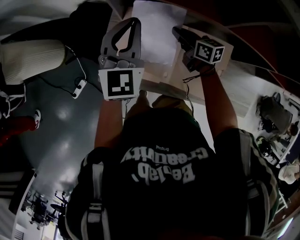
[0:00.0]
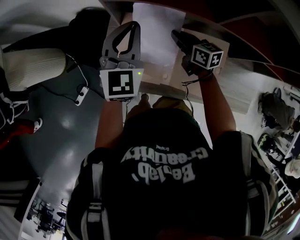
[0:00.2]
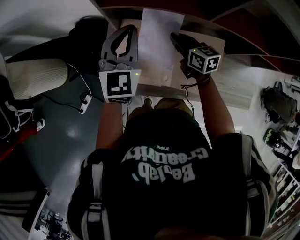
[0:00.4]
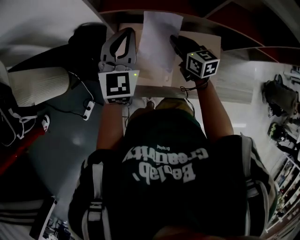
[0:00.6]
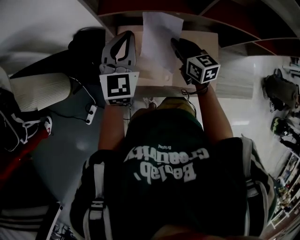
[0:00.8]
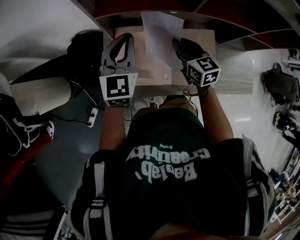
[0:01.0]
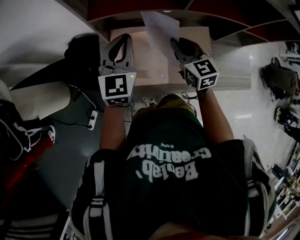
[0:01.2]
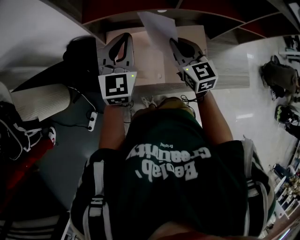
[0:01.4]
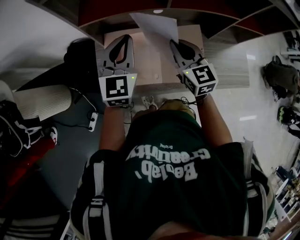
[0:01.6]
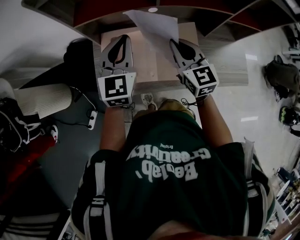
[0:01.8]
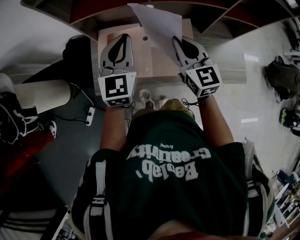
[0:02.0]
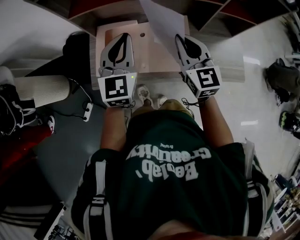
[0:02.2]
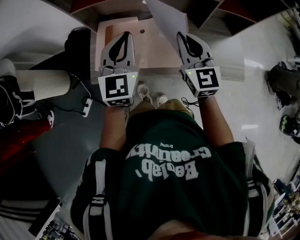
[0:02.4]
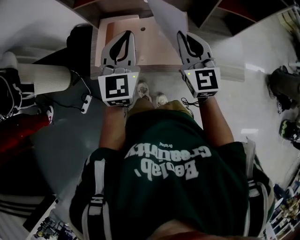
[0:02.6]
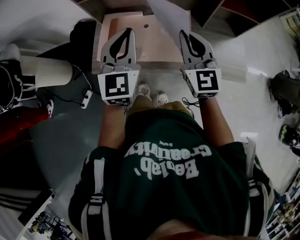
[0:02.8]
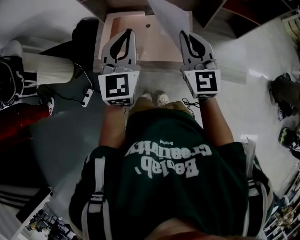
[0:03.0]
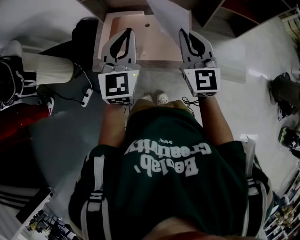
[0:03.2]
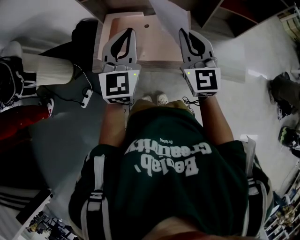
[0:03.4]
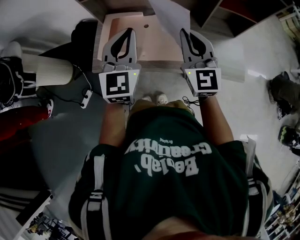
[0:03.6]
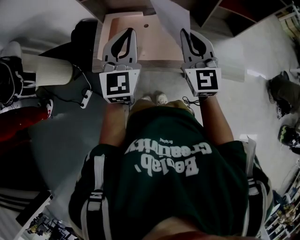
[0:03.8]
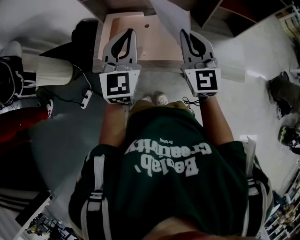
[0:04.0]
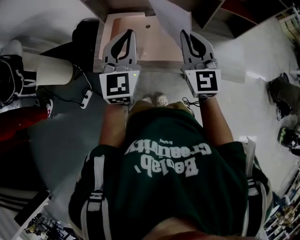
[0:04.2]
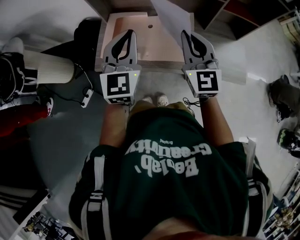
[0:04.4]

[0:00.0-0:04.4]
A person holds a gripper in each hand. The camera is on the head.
0:00.0 to 0:01.4: The right gripper travels upward by about 15 cm, and changes its angle by about 50 degrees. Meanwhile the left gripper shifts by roughly 10 cm.
0:01.4 to 0:03.0: The left gripper shifts approximately 25 cm backward and to the right. The right gripper goes some 25 cm backward, to the right and upward, and changes its angle by roughly 20 degrees.
0:03.0 to 0:04.4: The grippers move only a little.

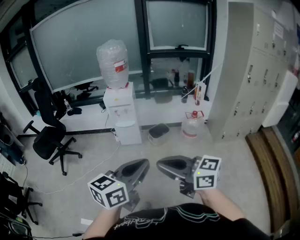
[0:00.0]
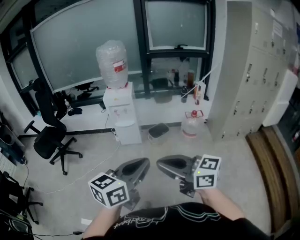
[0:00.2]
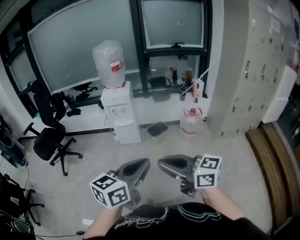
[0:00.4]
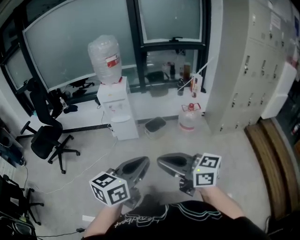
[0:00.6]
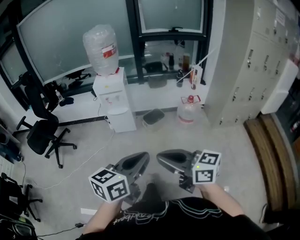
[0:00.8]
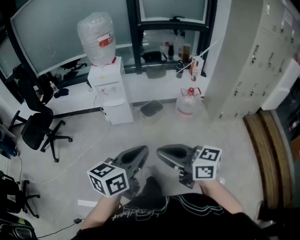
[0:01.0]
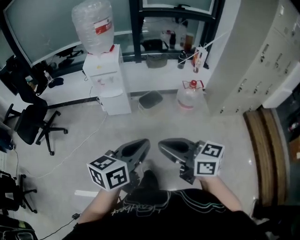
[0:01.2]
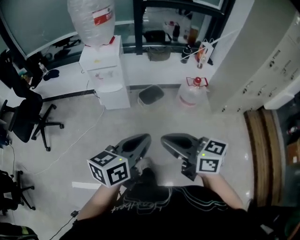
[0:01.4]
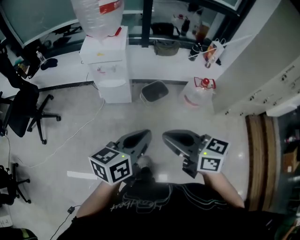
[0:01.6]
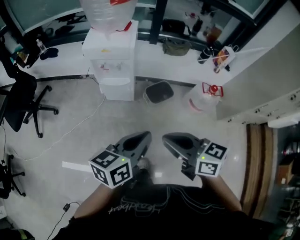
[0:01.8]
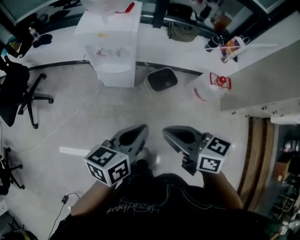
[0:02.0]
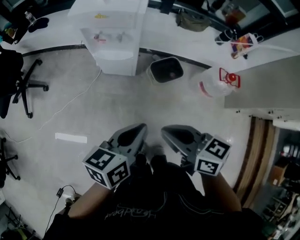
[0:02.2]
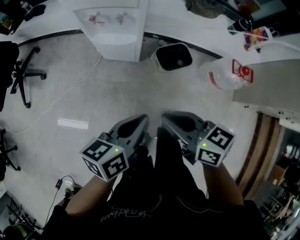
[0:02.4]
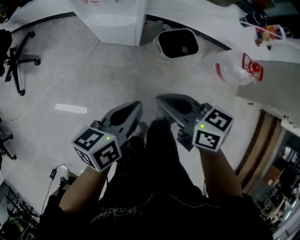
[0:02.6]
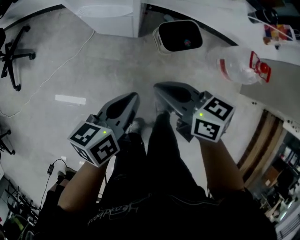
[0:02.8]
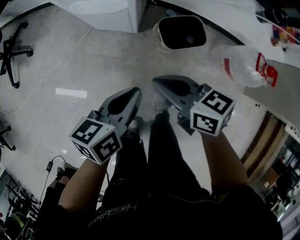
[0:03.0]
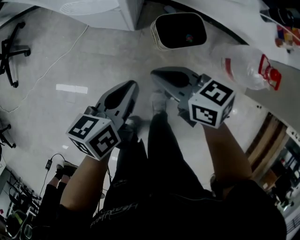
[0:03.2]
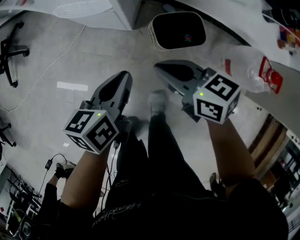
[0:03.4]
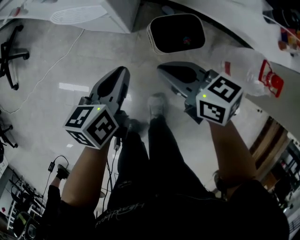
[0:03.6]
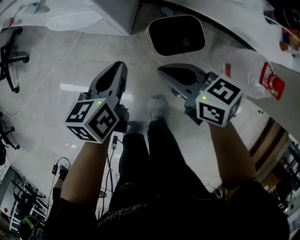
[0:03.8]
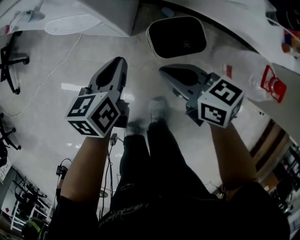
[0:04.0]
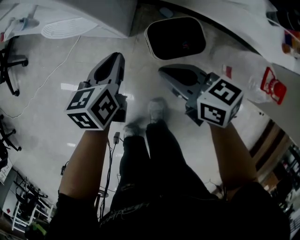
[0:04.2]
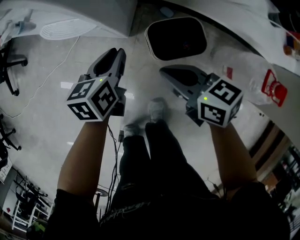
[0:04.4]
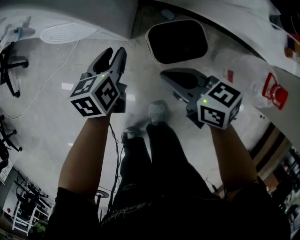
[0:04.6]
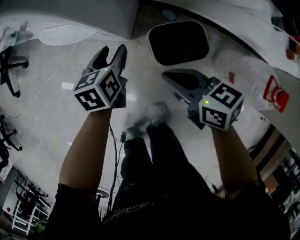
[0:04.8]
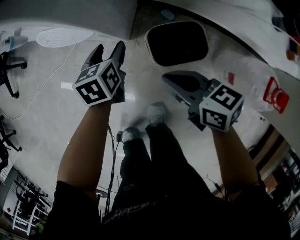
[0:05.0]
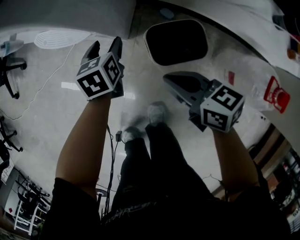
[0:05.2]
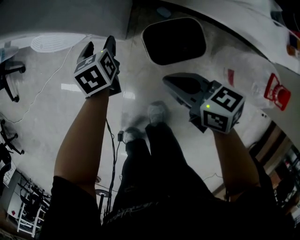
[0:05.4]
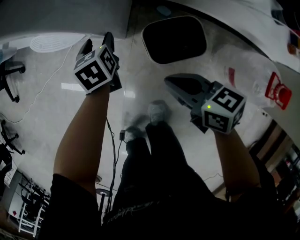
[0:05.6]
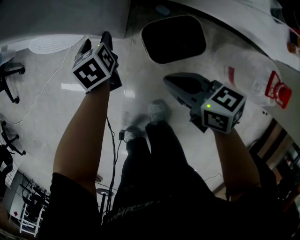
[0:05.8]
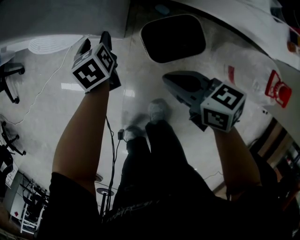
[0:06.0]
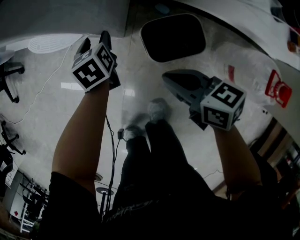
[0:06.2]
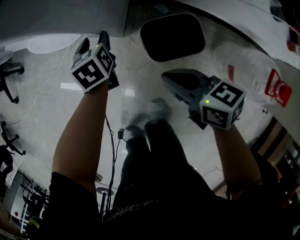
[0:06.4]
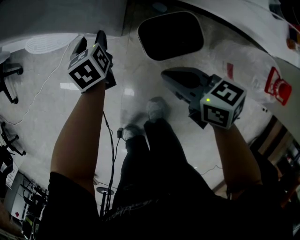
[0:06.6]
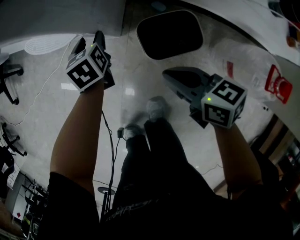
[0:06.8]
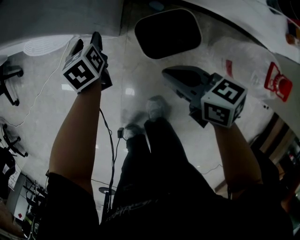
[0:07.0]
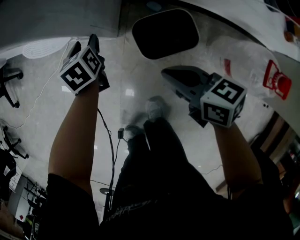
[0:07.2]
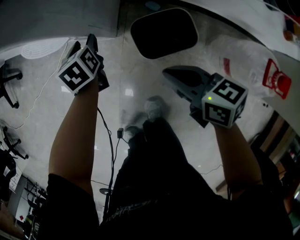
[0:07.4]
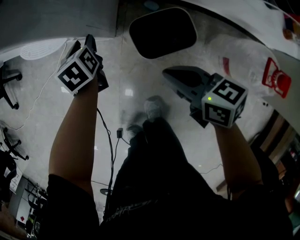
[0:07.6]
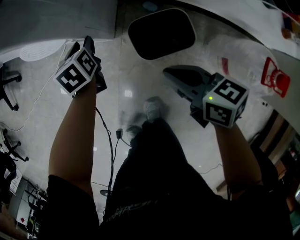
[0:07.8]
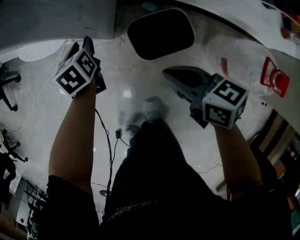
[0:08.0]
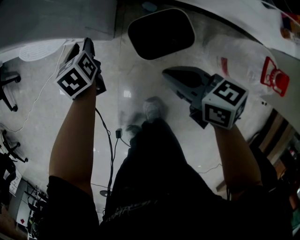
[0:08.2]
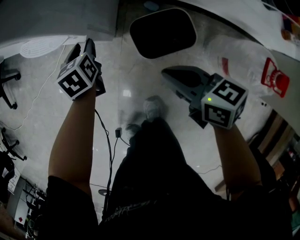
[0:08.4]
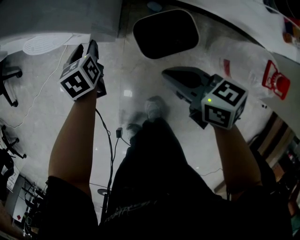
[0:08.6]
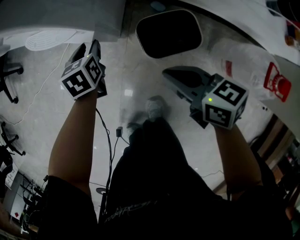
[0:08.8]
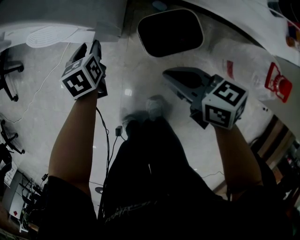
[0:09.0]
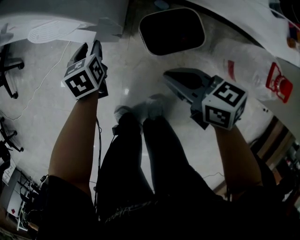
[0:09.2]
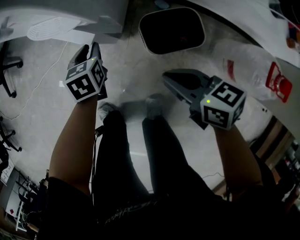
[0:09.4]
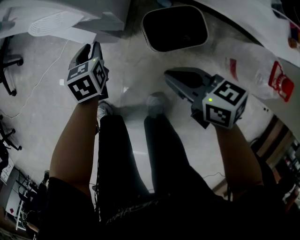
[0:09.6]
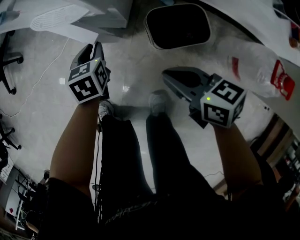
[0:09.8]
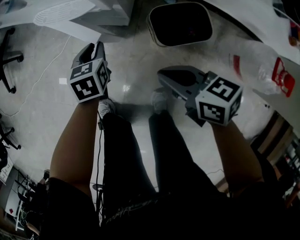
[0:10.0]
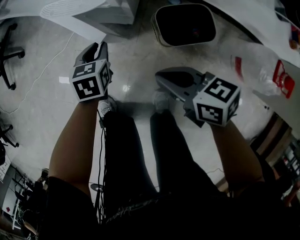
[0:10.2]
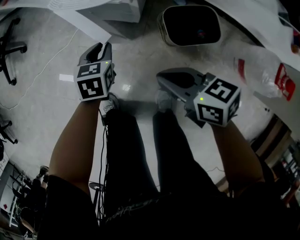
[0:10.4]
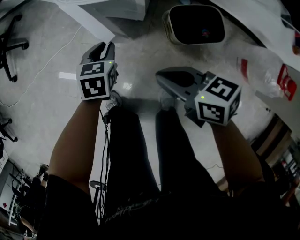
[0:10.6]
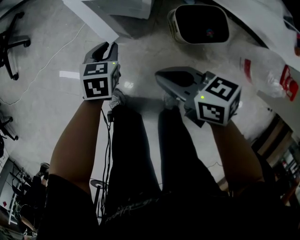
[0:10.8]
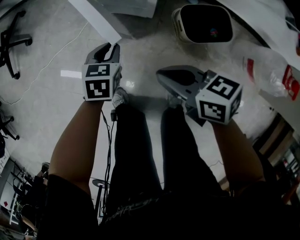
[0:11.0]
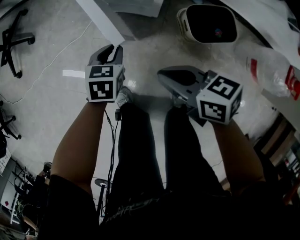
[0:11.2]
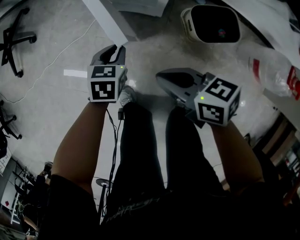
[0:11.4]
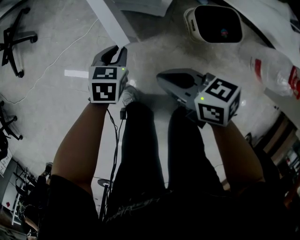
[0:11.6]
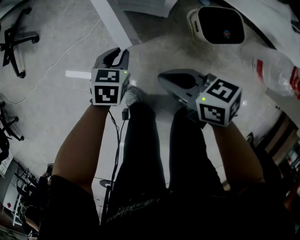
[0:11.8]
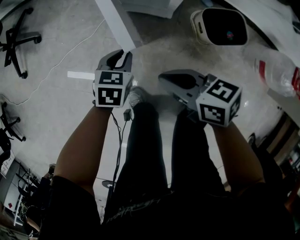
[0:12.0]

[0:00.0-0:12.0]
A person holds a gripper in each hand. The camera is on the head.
0:00.0 to 0:01.6: Both grippers travel together forward and downward, roughly 35 cm.
0:01.6 to 0:03.0: The grippers both shift downward and forward by roughly 50 cm. The left gripper swivels some 30 degrees. The right gripper rotates about 20 degrees.
0:03.0 to 0:04.4: The left gripper heads forward, downward and to the right, covering approximately 25 cm, and changes its angle by approximately 20 degrees, while the right gripper moves to the right, forward and downward, approximately 15 cm.
0:04.4 to 0:06.0: The left gripper travels forward and downward by some 15 cm, rotates roughly 30 degrees, and opens.
0:06.0 to 0:09.0: There are only small adjustments of the grippers.
0:09.0 to 0:10.4: The two grippers go approximately 10 cm to the left.
0:10.4 to 0:12.0: Both grippers travel together to the left, roughly 15 cm.

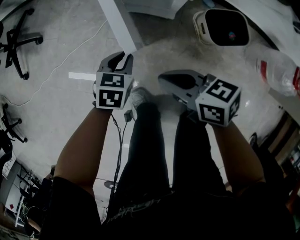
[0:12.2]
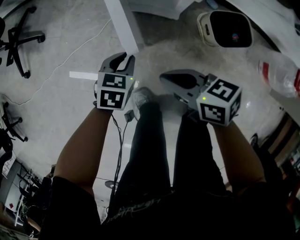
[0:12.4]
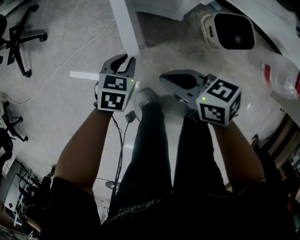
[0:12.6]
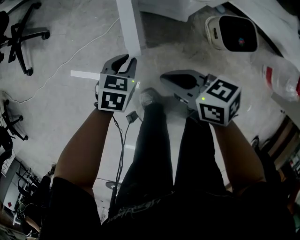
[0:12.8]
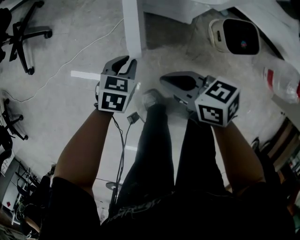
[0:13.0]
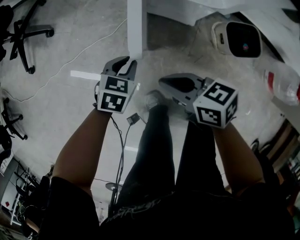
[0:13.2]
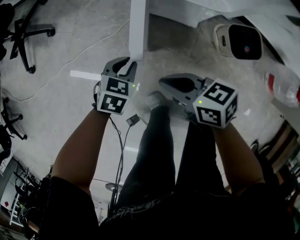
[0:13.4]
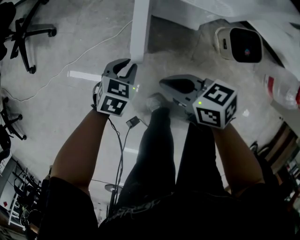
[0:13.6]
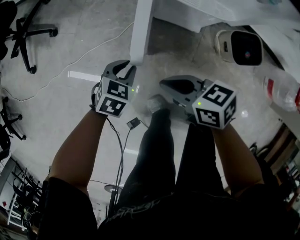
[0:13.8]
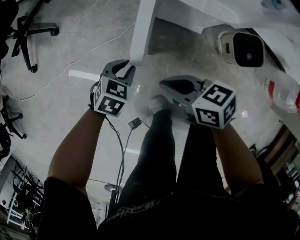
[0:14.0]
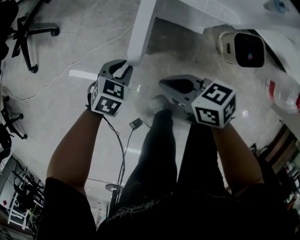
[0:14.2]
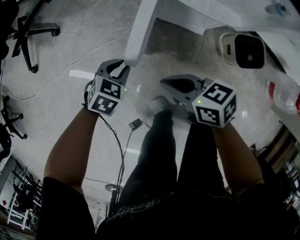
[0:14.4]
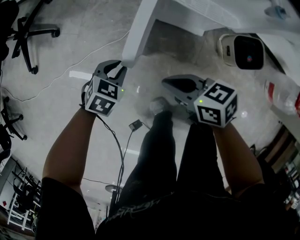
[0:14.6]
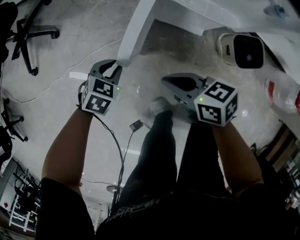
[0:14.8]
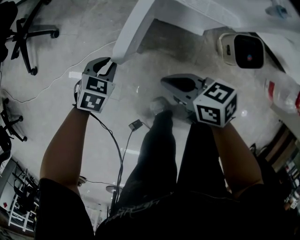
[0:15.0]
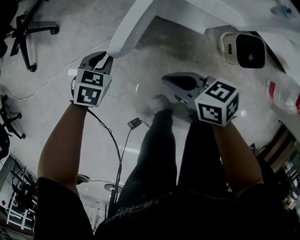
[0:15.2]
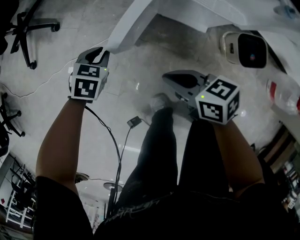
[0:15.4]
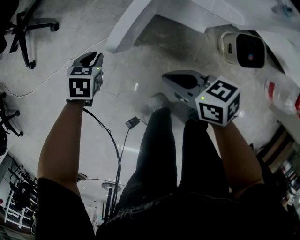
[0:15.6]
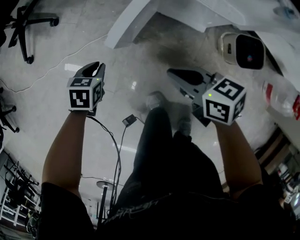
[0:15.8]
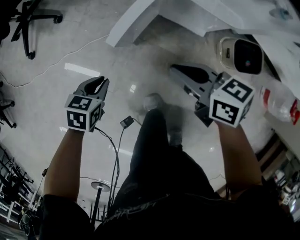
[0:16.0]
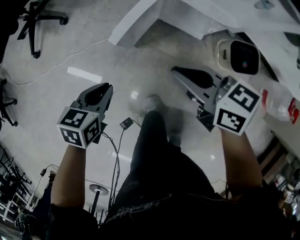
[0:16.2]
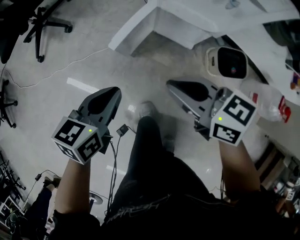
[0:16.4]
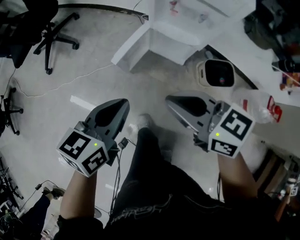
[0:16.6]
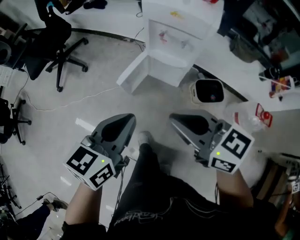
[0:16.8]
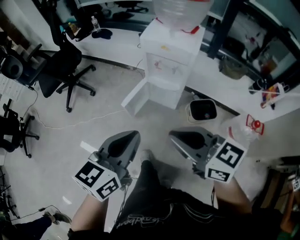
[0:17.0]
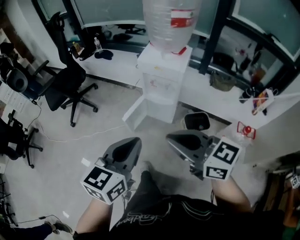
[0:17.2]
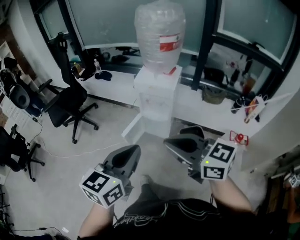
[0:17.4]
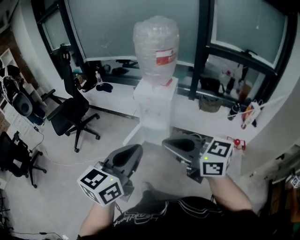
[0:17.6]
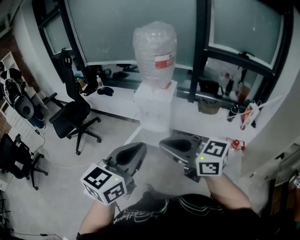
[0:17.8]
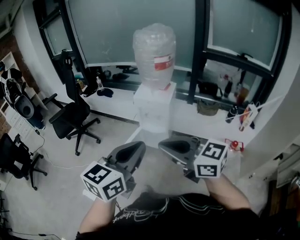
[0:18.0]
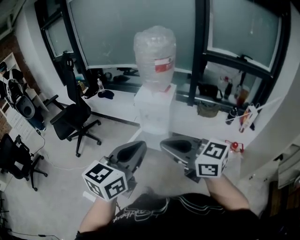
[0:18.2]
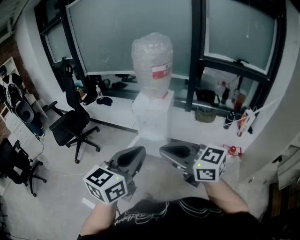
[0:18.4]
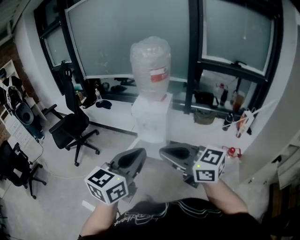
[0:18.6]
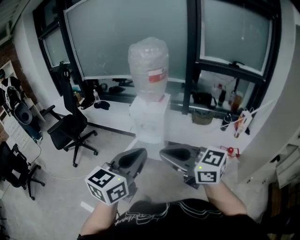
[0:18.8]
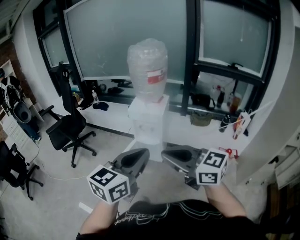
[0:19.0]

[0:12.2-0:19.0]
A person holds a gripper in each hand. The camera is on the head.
0:12.2 to 0:13.6: The left gripper is displaced to the left by roughly 10 cm; the right gripper is displaced to the left and forward by about 10 cm.
0:13.6 to 0:15.0: The left gripper shifts roughly 10 cm to the left and forward.
0:15.0 to 0:16.2: The right gripper shifts some 10 cm upward, while the left gripper is displaced backward and upward by approximately 15 cm, and turns by some 30 degrees.
0:16.2 to 0:17.6: The two grippers go about 70 cm upward and backward. The right gripper turns by approximately 40 degrees. The left gripper tilts its fingers some 50 degrees upward.
0:17.6 to 0:19.0: The left gripper changes place by some 5 cm. Meanwhile the right gripper ends up roughly 5 cm from where it was.
